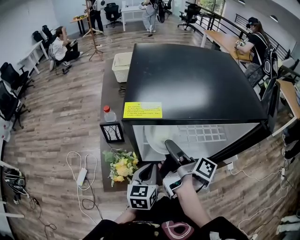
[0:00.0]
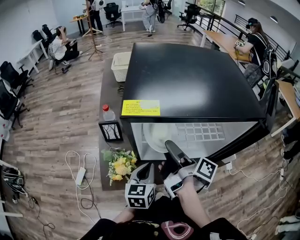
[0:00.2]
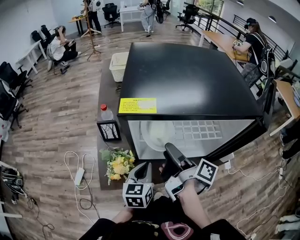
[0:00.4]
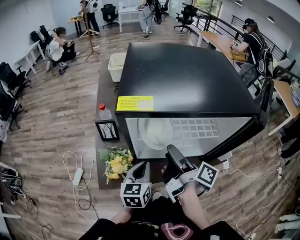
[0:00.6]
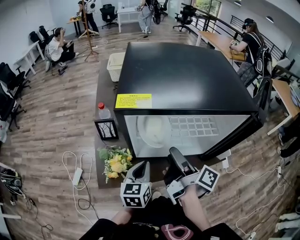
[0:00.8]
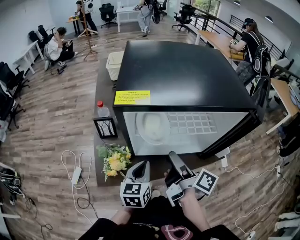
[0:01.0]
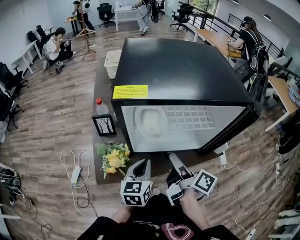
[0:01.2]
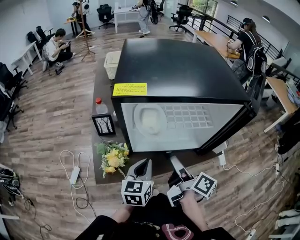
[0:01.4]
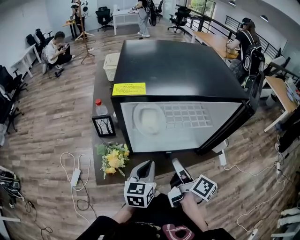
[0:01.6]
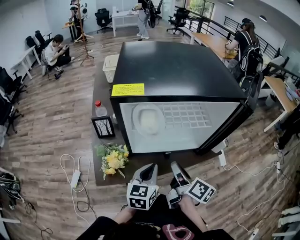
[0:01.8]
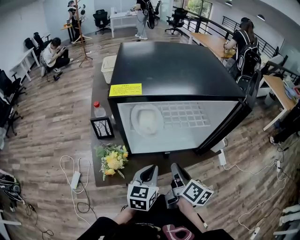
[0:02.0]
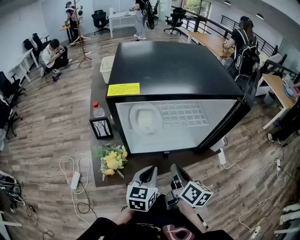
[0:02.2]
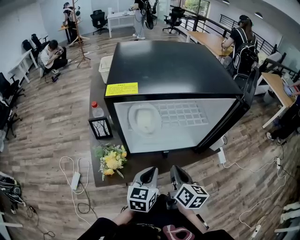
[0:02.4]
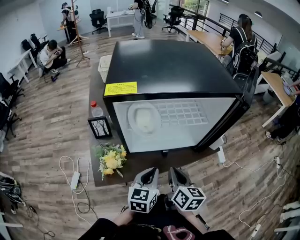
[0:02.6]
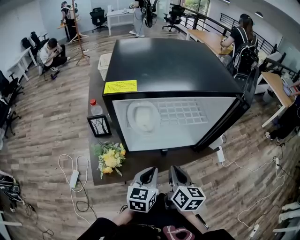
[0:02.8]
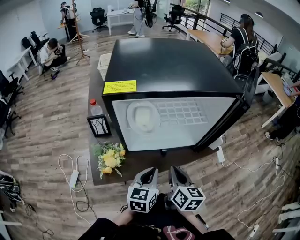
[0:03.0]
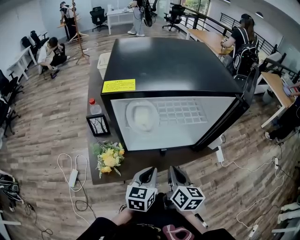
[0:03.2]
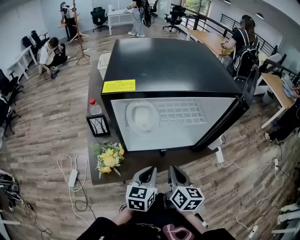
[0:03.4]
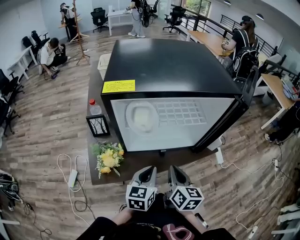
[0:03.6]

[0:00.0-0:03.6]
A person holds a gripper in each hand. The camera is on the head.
0:00.0 to 0:01.8: The left gripper ends up about 10 cm from where it was.

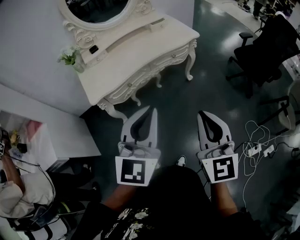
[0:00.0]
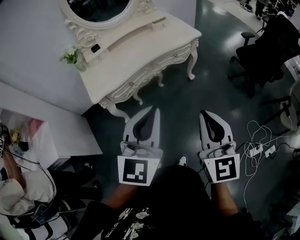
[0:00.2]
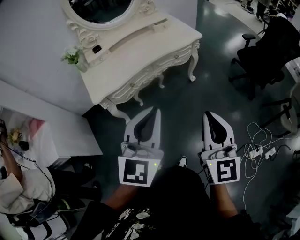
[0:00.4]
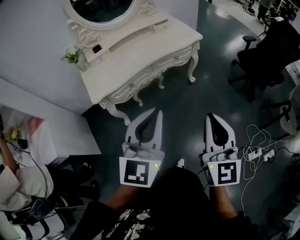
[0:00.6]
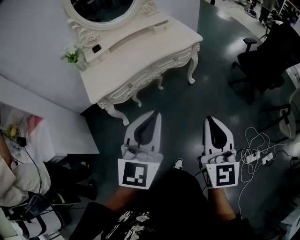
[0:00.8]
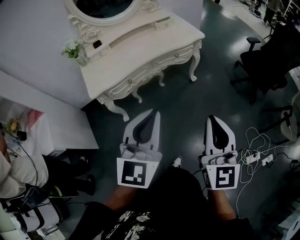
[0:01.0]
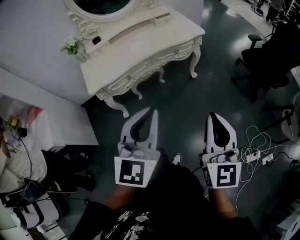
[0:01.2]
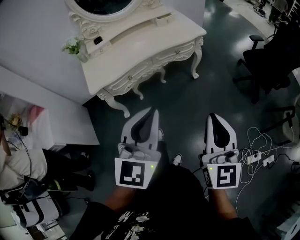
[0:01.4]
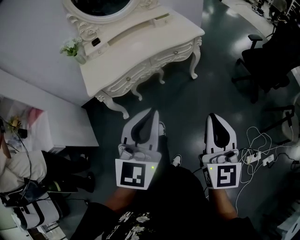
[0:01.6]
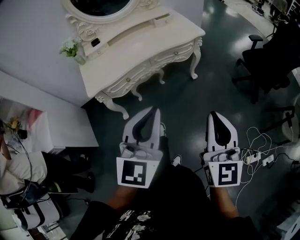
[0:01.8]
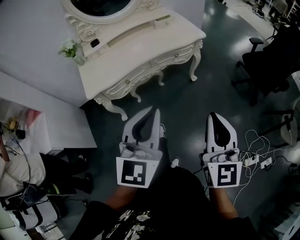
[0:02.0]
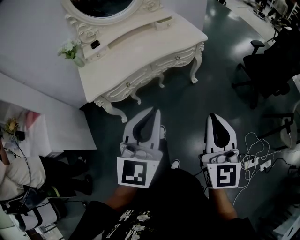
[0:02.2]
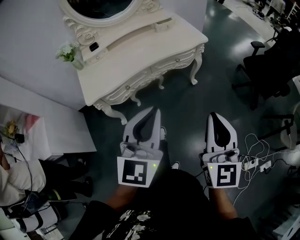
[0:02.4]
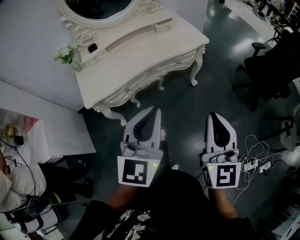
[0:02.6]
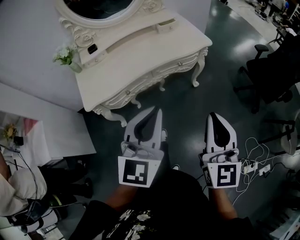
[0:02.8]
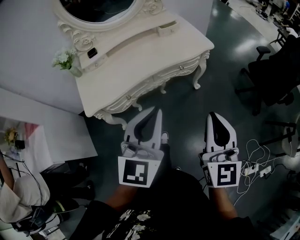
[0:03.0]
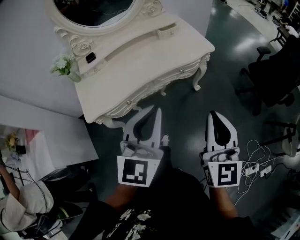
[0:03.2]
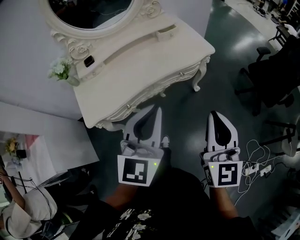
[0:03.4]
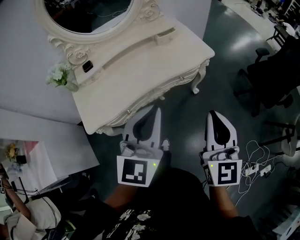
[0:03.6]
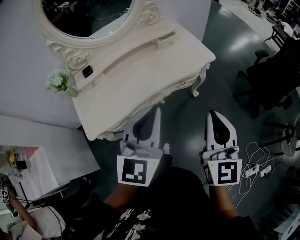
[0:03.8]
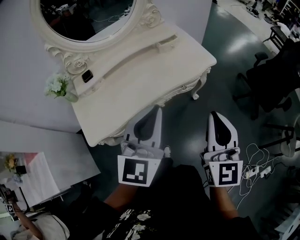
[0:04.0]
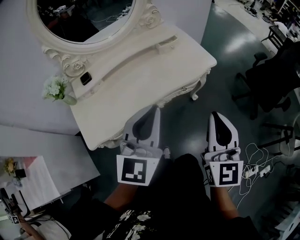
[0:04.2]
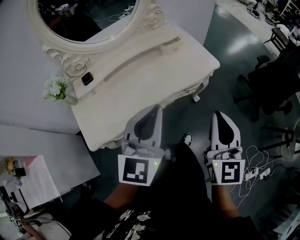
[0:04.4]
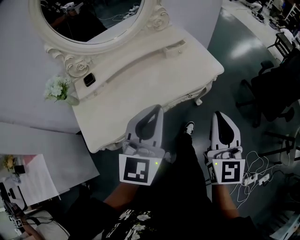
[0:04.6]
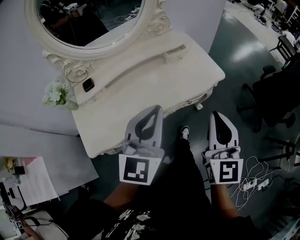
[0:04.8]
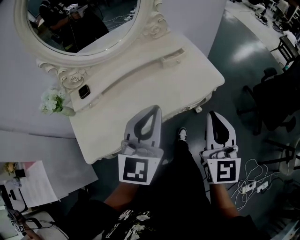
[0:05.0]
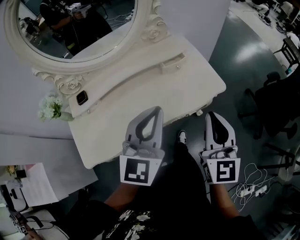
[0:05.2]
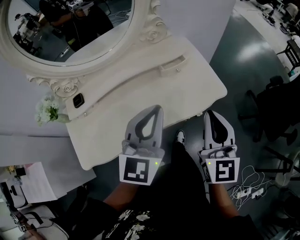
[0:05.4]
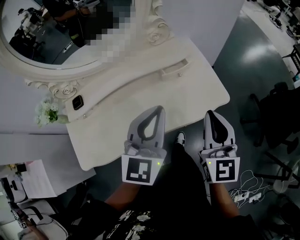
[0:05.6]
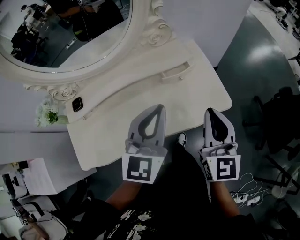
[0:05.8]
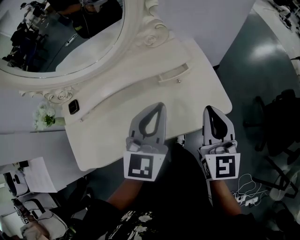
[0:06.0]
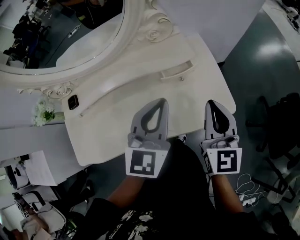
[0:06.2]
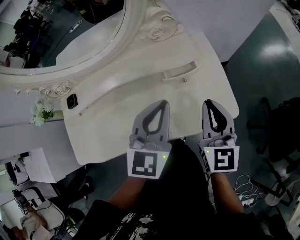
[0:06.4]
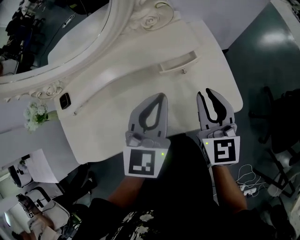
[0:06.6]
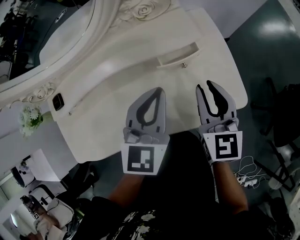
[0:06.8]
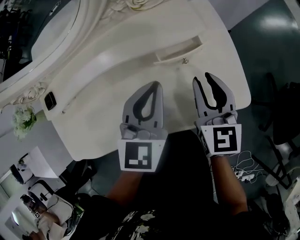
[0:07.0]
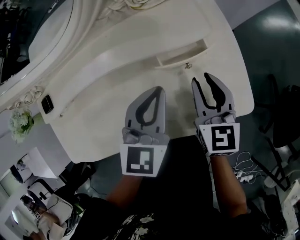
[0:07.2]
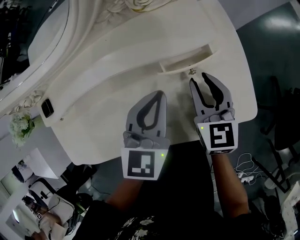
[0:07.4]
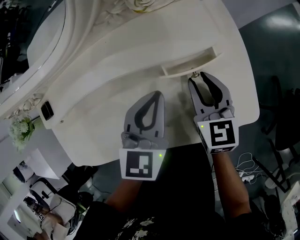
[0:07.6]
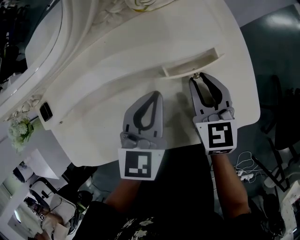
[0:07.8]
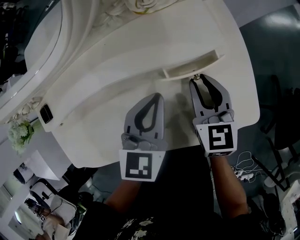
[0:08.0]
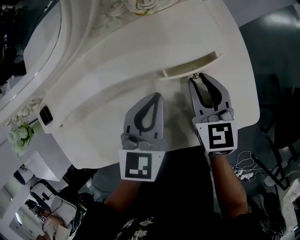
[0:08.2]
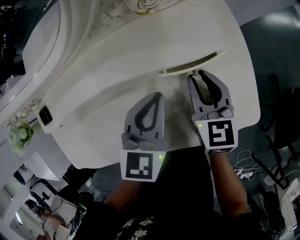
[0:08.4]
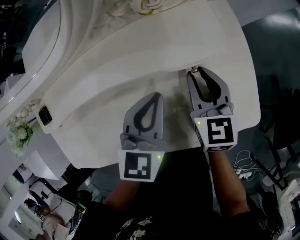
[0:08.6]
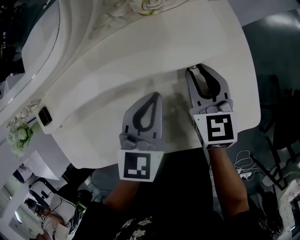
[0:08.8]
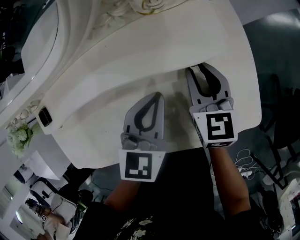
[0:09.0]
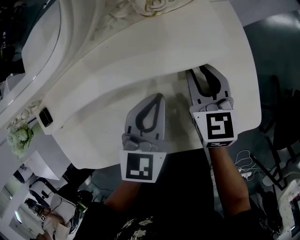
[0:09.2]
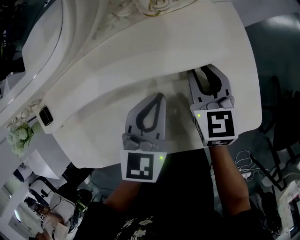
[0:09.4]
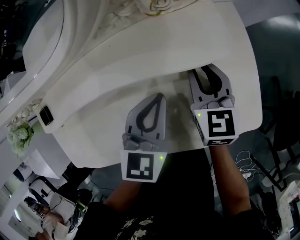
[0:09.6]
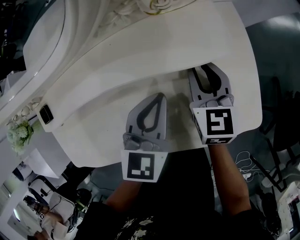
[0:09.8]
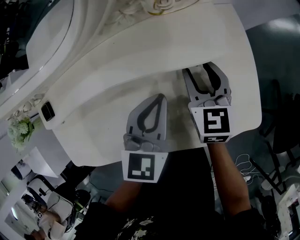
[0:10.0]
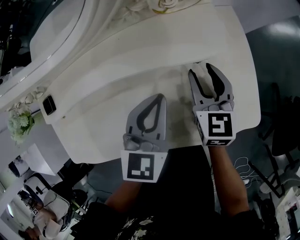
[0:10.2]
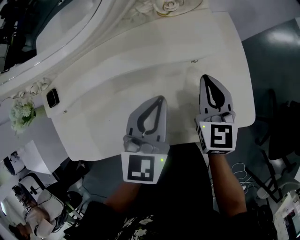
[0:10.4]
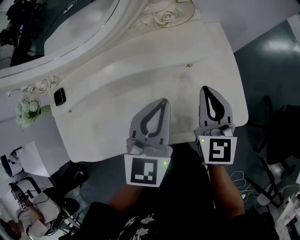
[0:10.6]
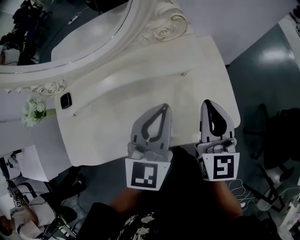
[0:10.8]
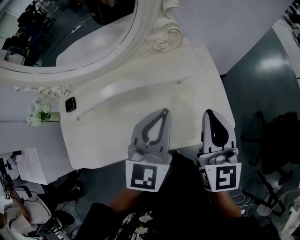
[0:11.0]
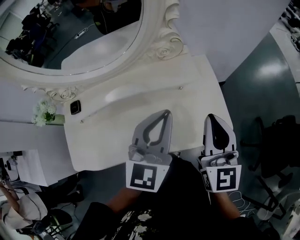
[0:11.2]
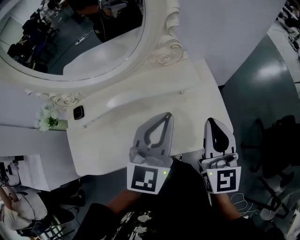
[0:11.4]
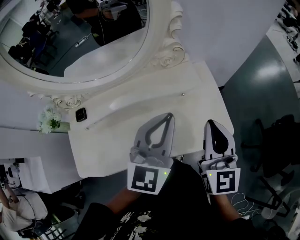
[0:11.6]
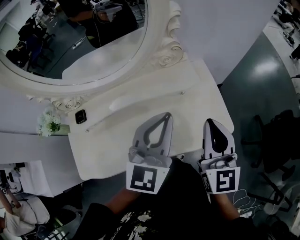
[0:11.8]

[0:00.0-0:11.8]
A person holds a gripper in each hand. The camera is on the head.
0:00.0 to 0:01.4: The left gripper ends up about 5 cm from where it was; the right gripper heads to the right, covering some 5 cm.
0:01.4 to 0:03.0: Both grippers travel together forward, approximately 15 cm.
0:03.0 to 0:04.4: The right gripper is displaced forward by some 15 cm, while the left gripper travels forward and to the left by approximately 20 cm.
0:04.4 to 0:06.0: Both grippers travel together forward, about 30 cm.
0:06.0 to 0:07.4: Both grippers travel together downward and forward, about 20 cm. The right gripper changes its angle by some 20 degrees, and opens its fingers.
0:07.4 to 0:08.8: The right gripper changes place by roughly 5 cm.
0:08.8 to 0:10.4: The left gripper ends up about 5 cm from where it was; the right gripper changes place by roughly 5 cm, and closes up.
0:10.4 to 0:11.8: The right gripper moves upward and backward, about 25 cm, and turns by approximately 20 degrees, while the left gripper shifts roughly 20 cm upward, and turns by about 20 degrees.

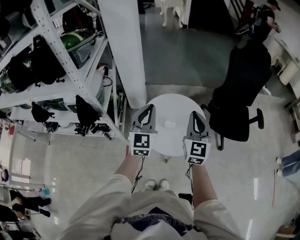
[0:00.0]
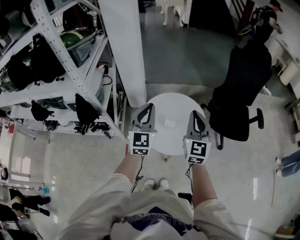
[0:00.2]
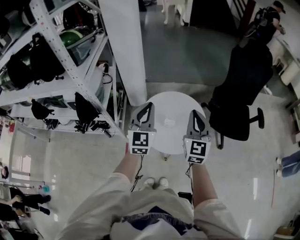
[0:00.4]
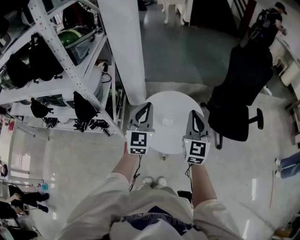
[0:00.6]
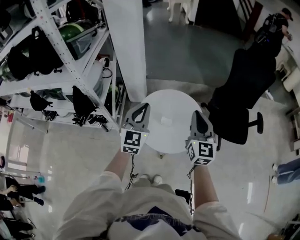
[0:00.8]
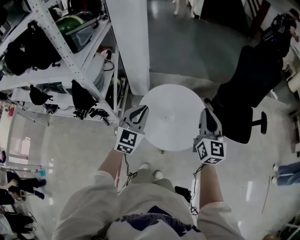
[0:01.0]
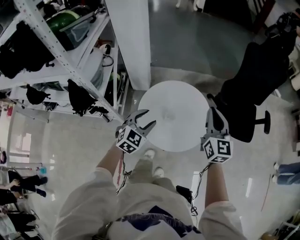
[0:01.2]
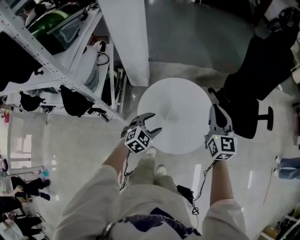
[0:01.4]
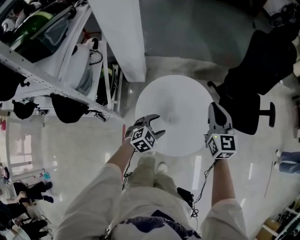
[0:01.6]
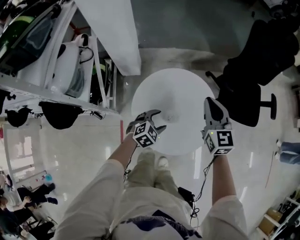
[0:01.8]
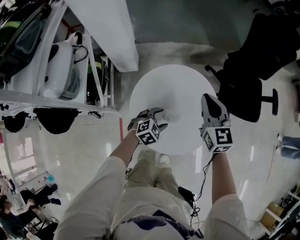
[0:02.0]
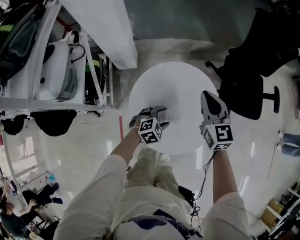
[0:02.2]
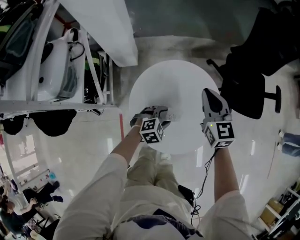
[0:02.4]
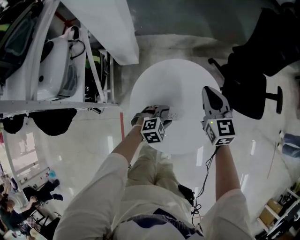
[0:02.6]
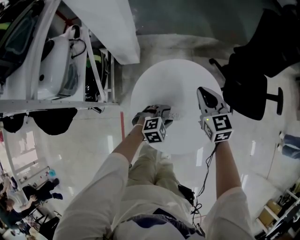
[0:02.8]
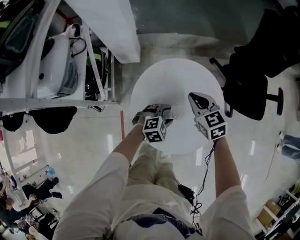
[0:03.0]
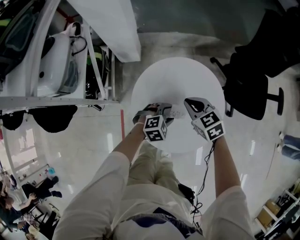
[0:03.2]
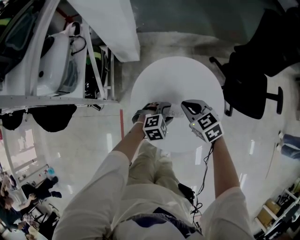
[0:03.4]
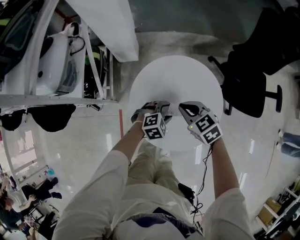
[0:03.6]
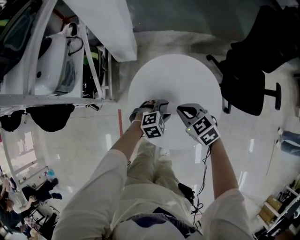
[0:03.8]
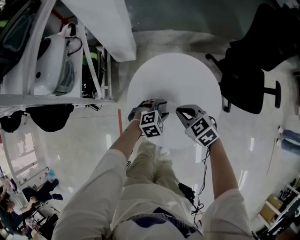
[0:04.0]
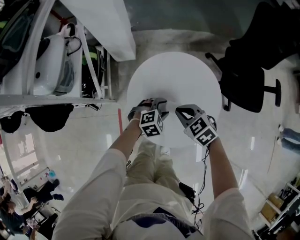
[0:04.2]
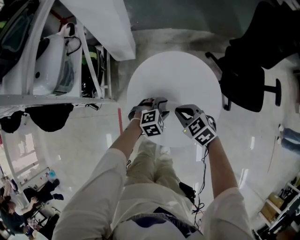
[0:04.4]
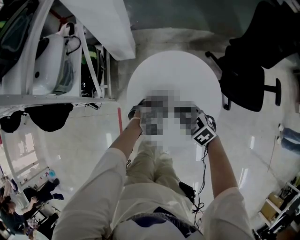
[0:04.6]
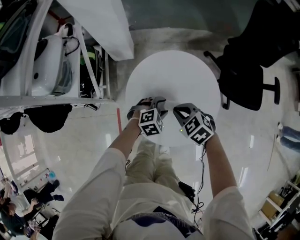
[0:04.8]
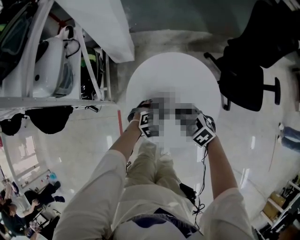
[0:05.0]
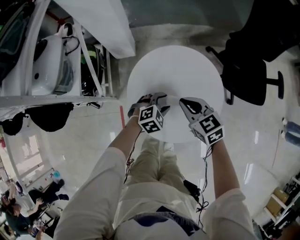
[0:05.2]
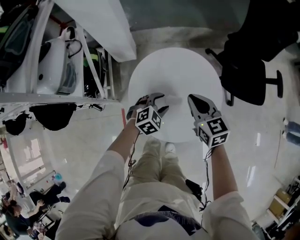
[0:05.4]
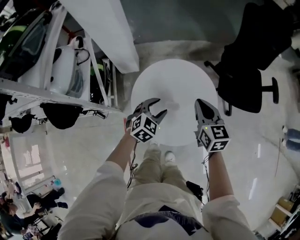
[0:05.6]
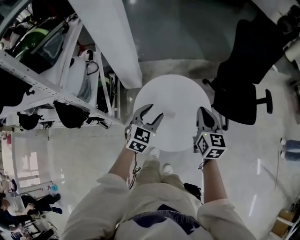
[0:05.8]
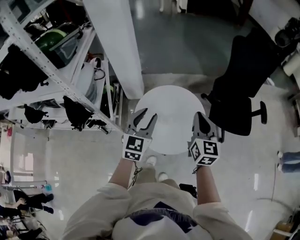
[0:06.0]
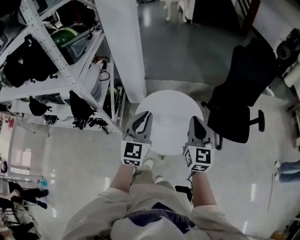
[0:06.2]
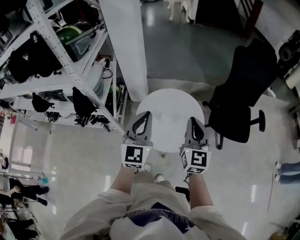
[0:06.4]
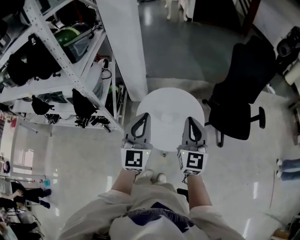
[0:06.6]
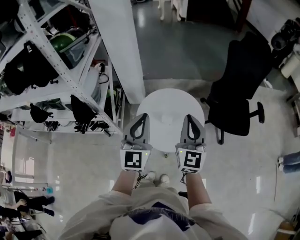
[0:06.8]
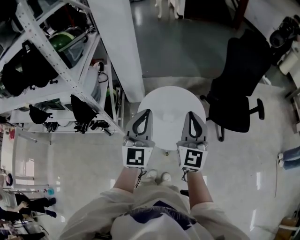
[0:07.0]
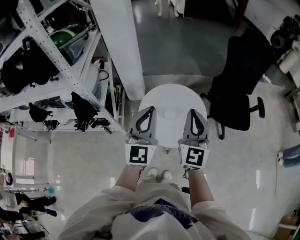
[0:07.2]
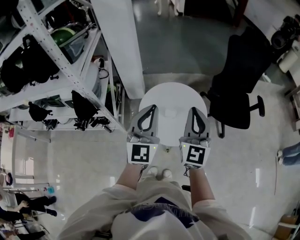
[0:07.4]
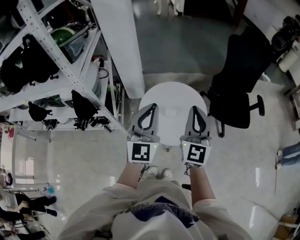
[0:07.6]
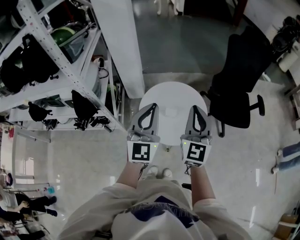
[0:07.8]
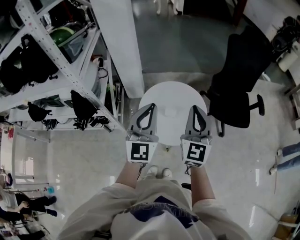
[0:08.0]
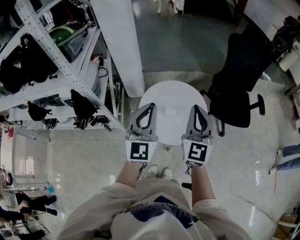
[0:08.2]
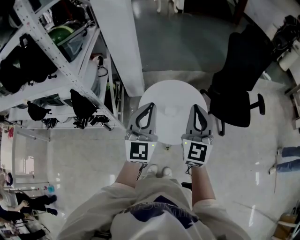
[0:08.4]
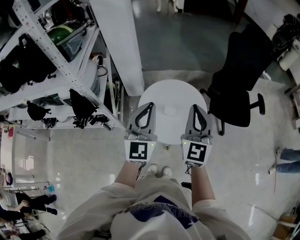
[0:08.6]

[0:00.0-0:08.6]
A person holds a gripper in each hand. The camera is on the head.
0:00.0 to 0:01.4: The right gripper travels forward, downward and to the right by approximately 15 cm. Meanwhile the left gripper travels downward by some 25 cm, angles its fingers downward, by approximately 40 degrees, and opens.
0:01.4 to 0:02.8: The left gripper goes some 15 cm downward and forward, and rotates about 30 degrees. The right gripper moves downward, to the left and forward, about 20 cm, and turns by approximately 20 degrees.
0:02.8 to 0:04.4: The right gripper heads backward and downward, covering roughly 15 cm, and turns by roughly 40 degrees.
0:04.4 to 0:05.8: The left gripper is displaced upward by approximately 20 cm, and changes its angle by some 40 degrees, while the right gripper shifts roughly 20 cm upward and to the right, and angles its fingers upward, by roughly 40 degrees.
0:05.8 to 0:07.2: Both grippers travel together upward and backward, approximately 25 cm. The left gripper angles its fingers upward, by some 40 degrees, and closes its fingers, while the right gripper rotates about 30 degrees.
0:07.2 to 0:08.6: The grippers make only small movements.
